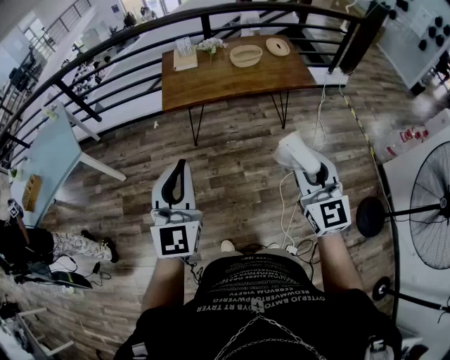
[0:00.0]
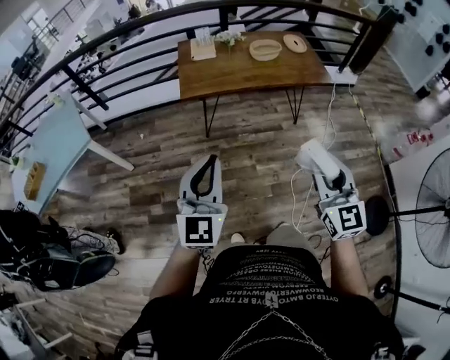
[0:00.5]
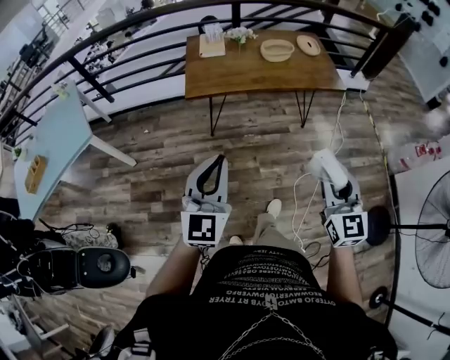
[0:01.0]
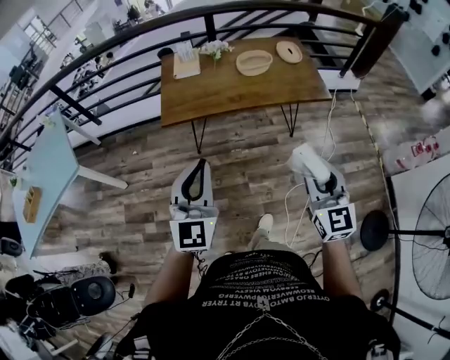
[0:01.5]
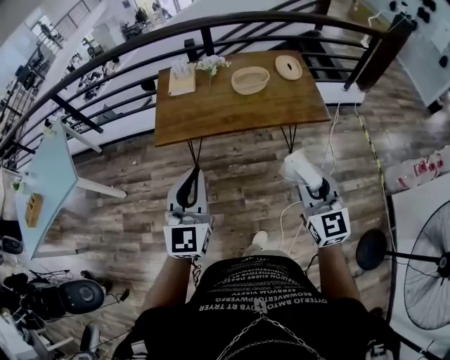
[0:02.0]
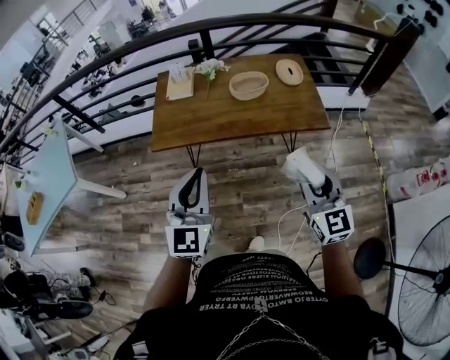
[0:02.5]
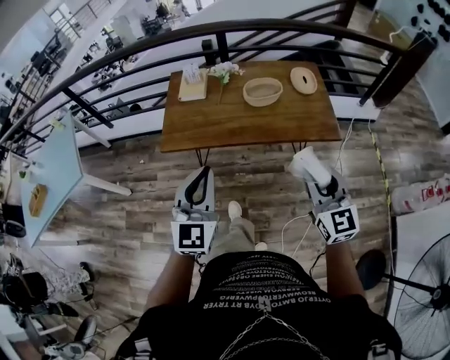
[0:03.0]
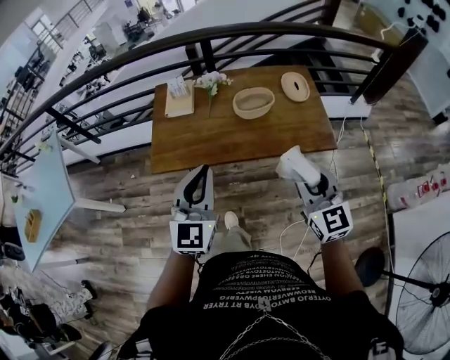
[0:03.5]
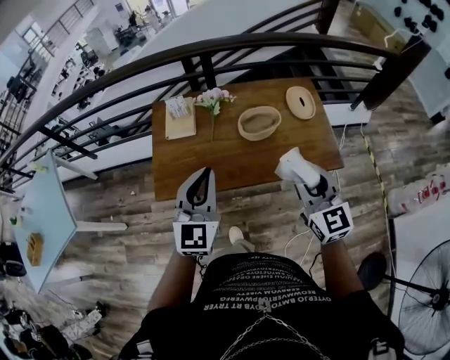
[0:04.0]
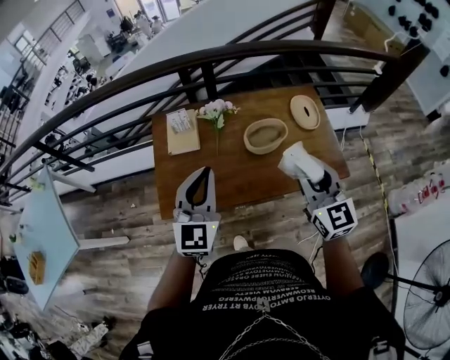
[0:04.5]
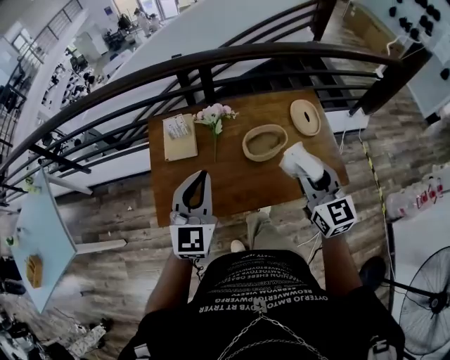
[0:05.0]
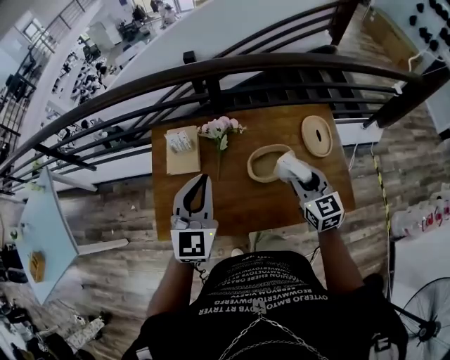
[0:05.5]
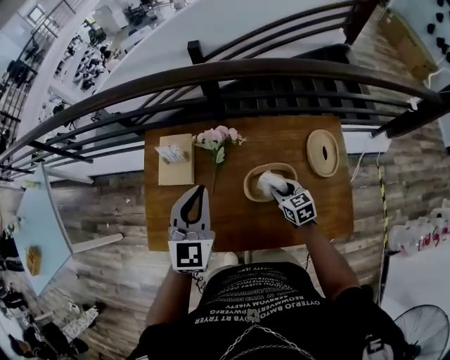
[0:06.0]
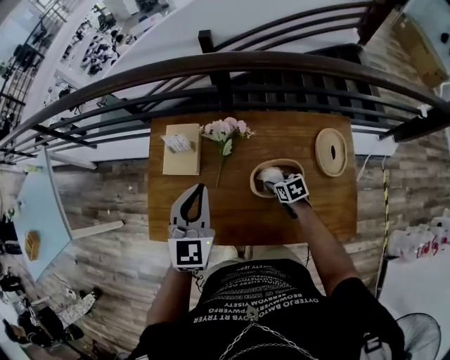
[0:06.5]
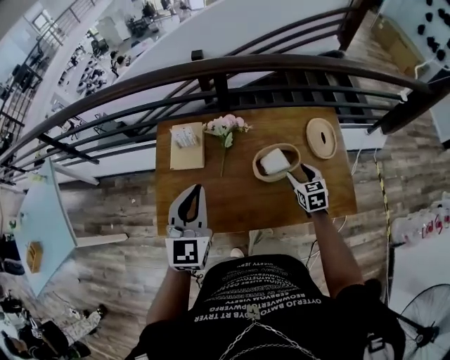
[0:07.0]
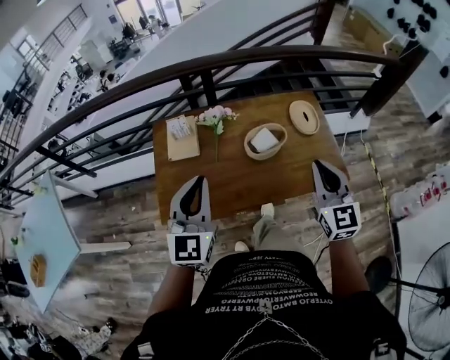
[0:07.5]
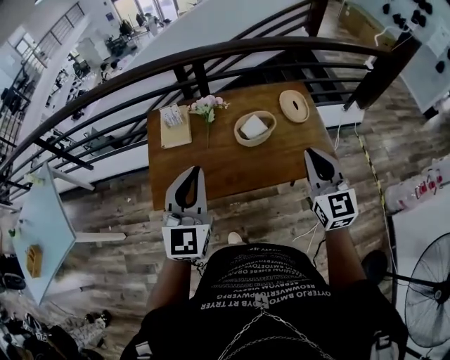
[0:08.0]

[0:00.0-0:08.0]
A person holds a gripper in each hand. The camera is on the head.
0:00.0 to 0:02.0: The grippers both shift forward and to the right by approximately 25 cm.
0:02.0 to 0:04.0: Both grippers travel together forward, roughly 30 cm.
0:04.0 to 0:06.0: The right gripper moves forward and downward, roughly 40 cm, and angles its fingers downward, by some 30 degrees. The left gripper heads forward, covering some 25 cm.
0:06.0 to 0:08.0: The left gripper changes place by some 30 cm, while the right gripper heads upward, covering roughly 35 cm, points its fingers some 30 degrees further upward, and opens, then closes again.

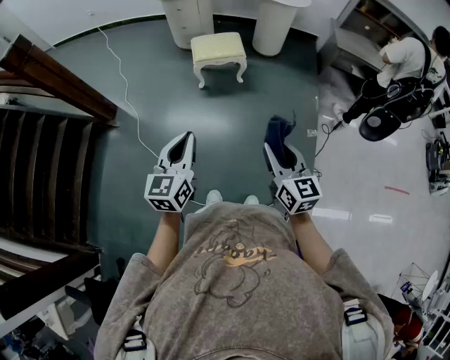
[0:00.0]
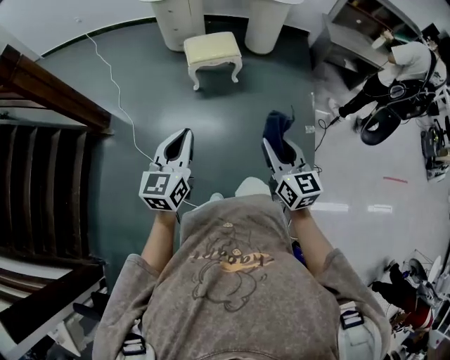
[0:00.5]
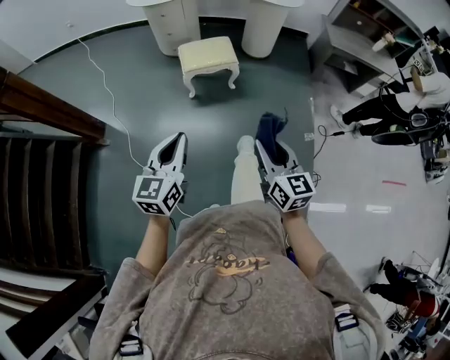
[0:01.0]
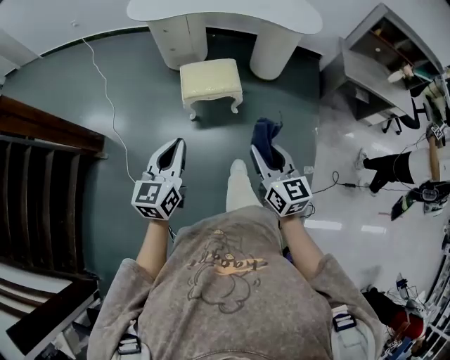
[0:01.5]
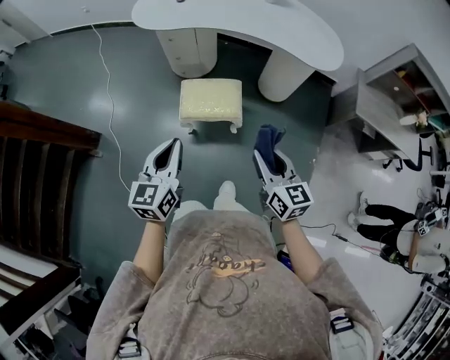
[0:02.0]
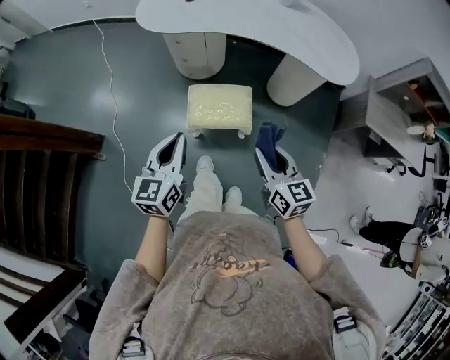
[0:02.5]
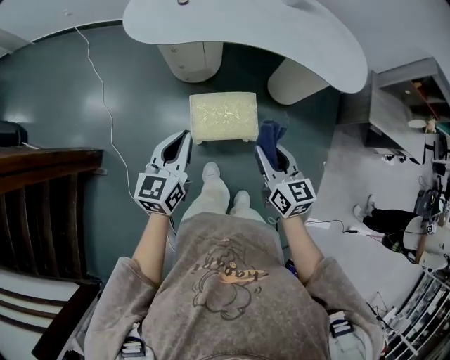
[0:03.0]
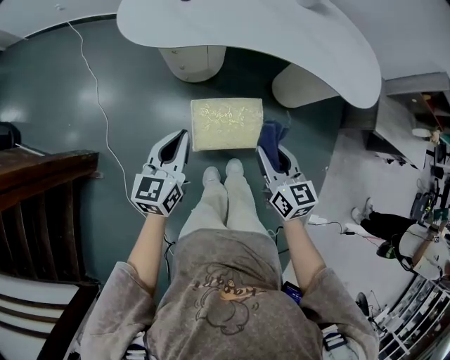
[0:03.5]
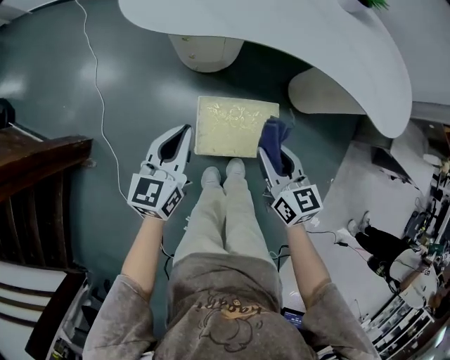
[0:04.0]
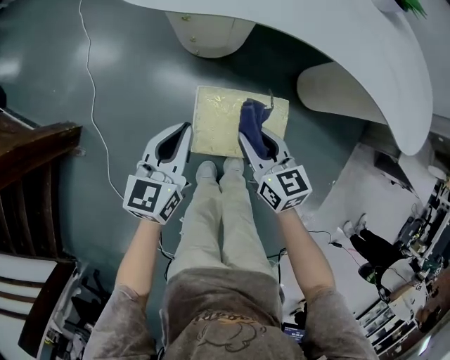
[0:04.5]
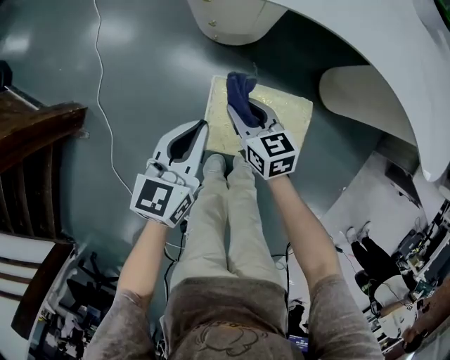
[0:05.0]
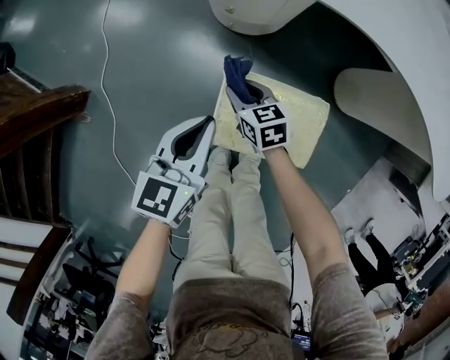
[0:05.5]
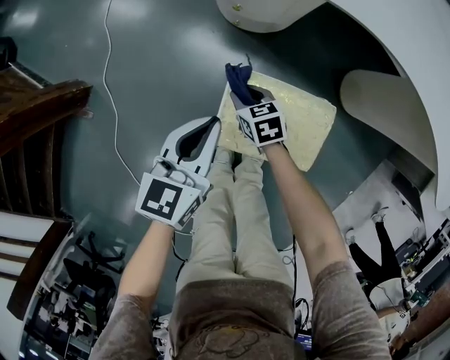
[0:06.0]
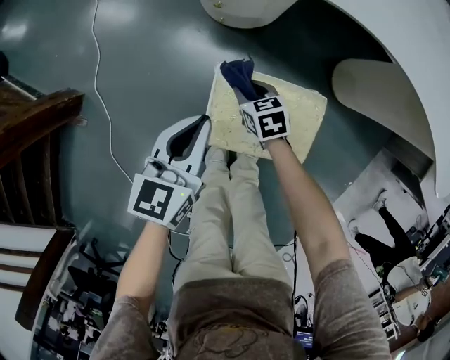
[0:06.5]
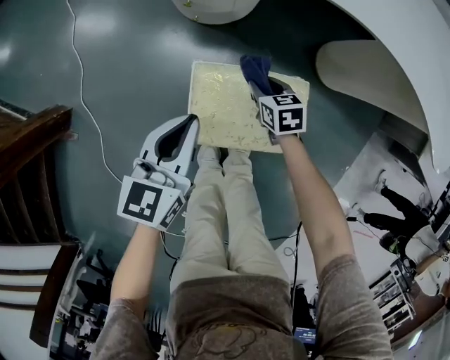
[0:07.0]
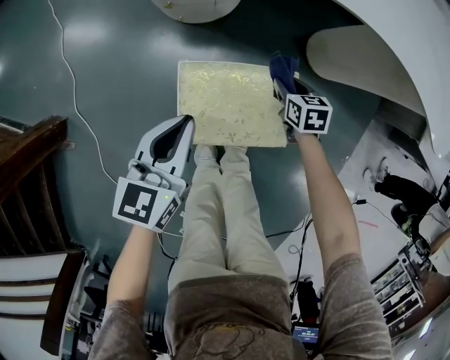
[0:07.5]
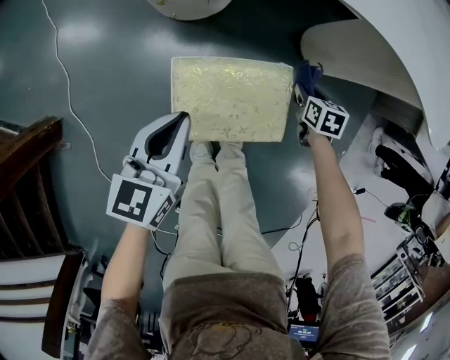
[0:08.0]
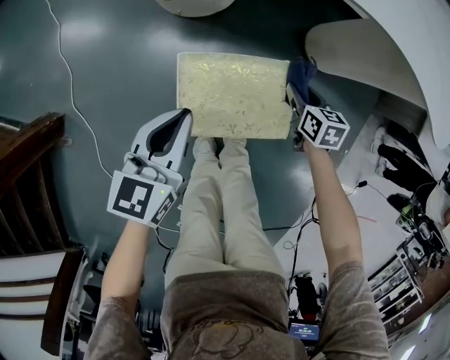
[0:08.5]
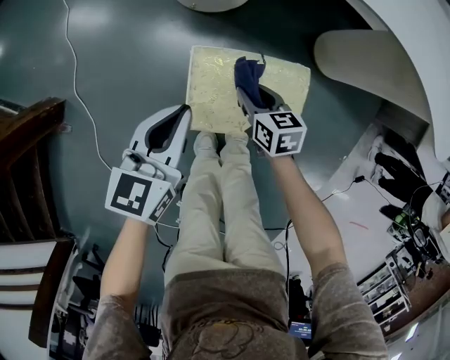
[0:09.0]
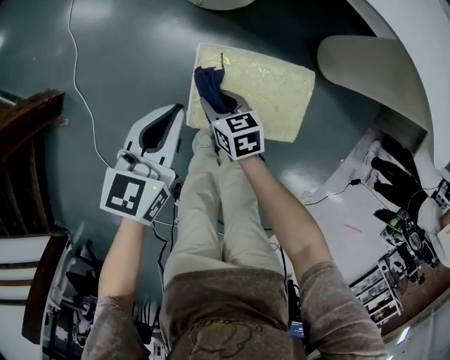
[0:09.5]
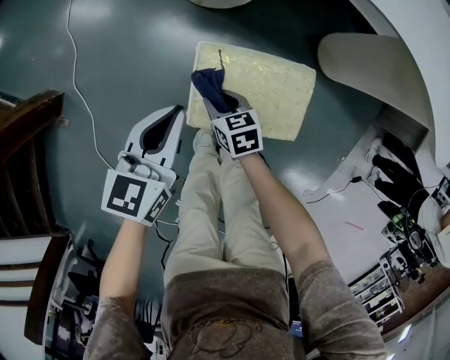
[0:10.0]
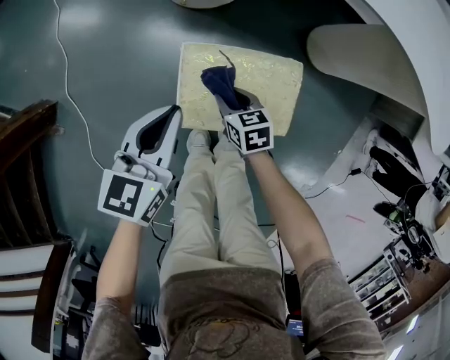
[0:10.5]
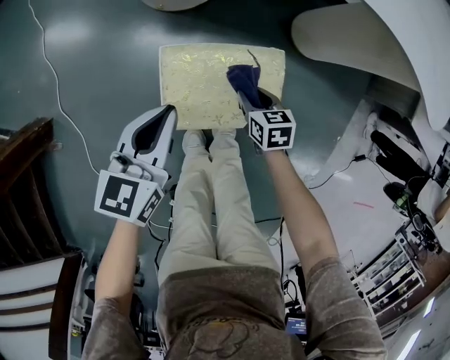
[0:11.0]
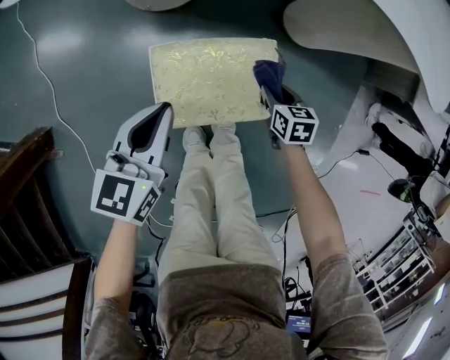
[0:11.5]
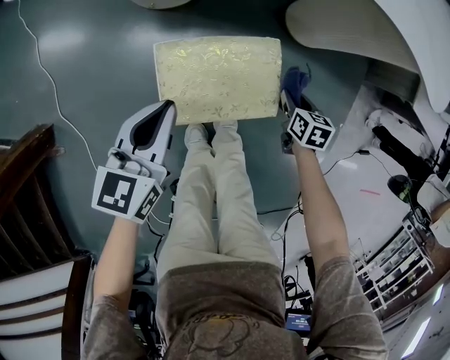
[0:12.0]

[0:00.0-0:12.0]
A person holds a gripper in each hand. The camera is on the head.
0:00.0 to 0:02.0: The pair of grippers is taken forward, about 50 cm.
0:02.0 to 0:04.0: Both grippers travel together forward and downward, about 40 cm.
0:04.0 to 0:06.0: The left gripper shifts about 15 cm downward; the right gripper heads downward and to the left, covering approximately 35 cm, and turns by about 40 degrees.
0:06.0 to 0:08.0: The right gripper changes place by some 35 cm, and changes its angle by approximately 40 degrees. The left gripper ends up some 5 cm from where it was.
0:08.0 to 0:10.0: The left gripper travels to the left by roughly 5 cm; the right gripper shifts roughly 35 cm to the left, and swivels roughly 30 degrees.
0:10.0 to 0:12.0: The left gripper ends up about 5 cm from where it was. The right gripper shifts by about 30 cm, and swivels about 40 degrees.

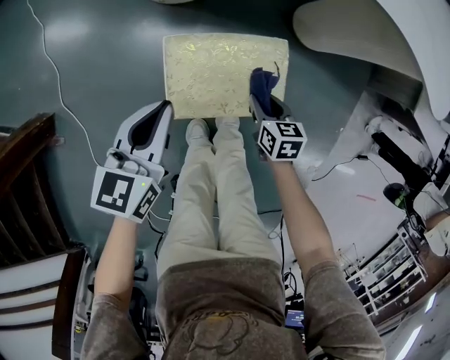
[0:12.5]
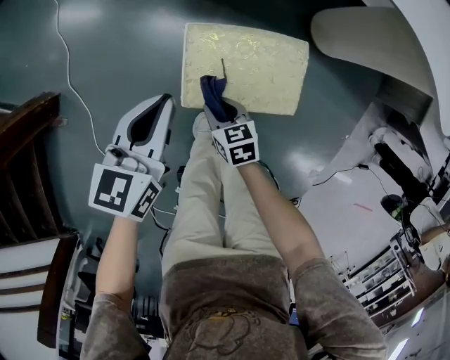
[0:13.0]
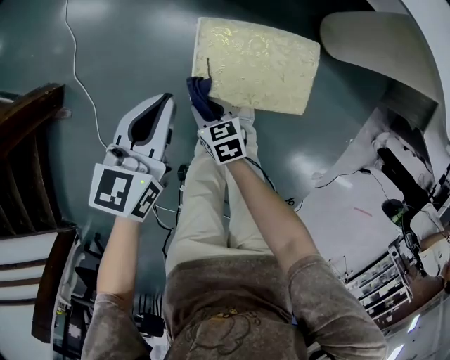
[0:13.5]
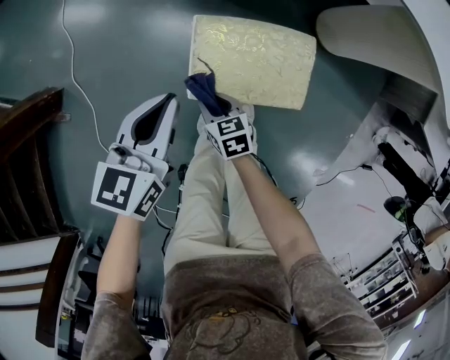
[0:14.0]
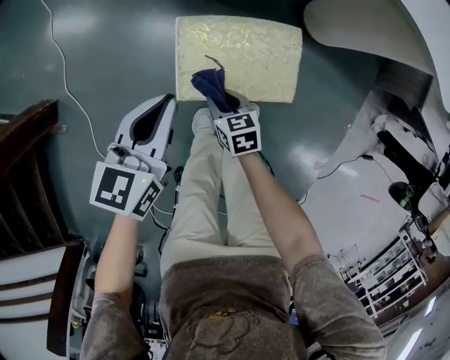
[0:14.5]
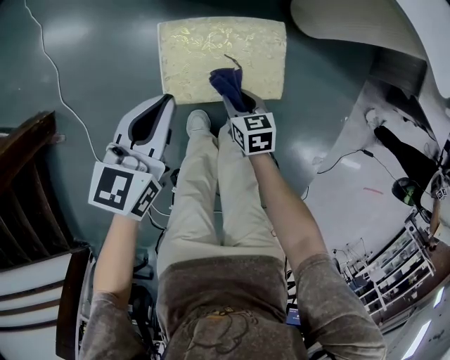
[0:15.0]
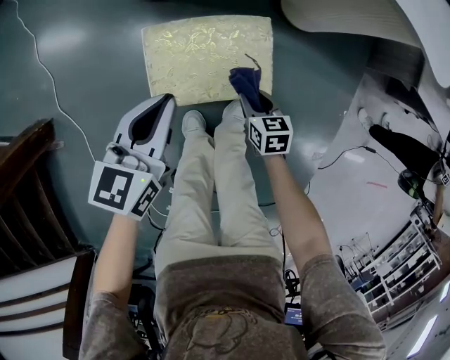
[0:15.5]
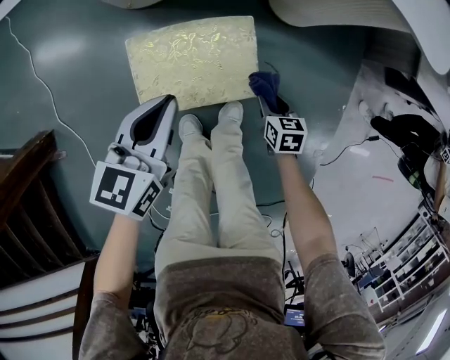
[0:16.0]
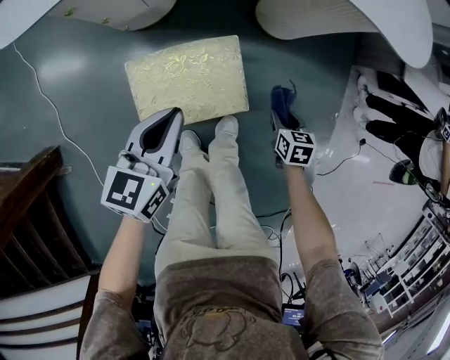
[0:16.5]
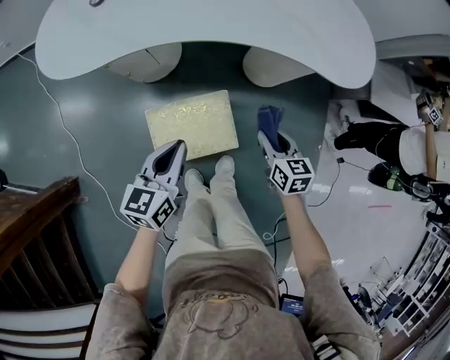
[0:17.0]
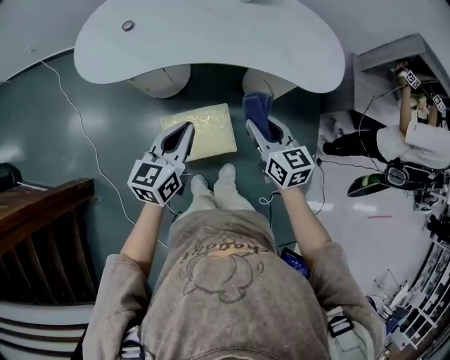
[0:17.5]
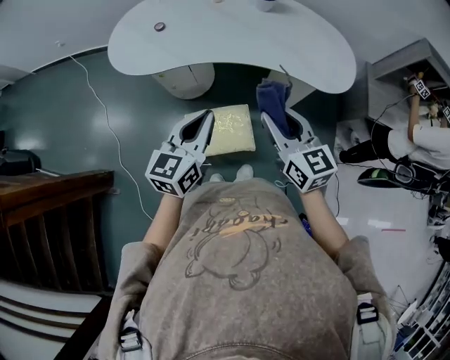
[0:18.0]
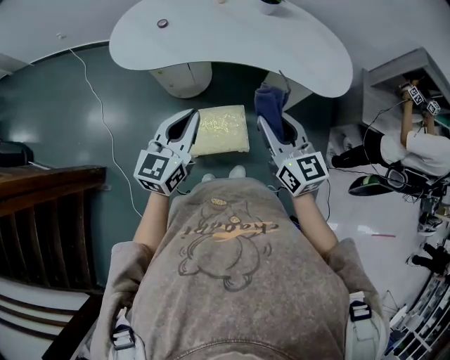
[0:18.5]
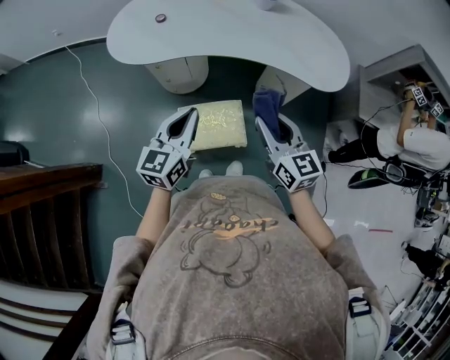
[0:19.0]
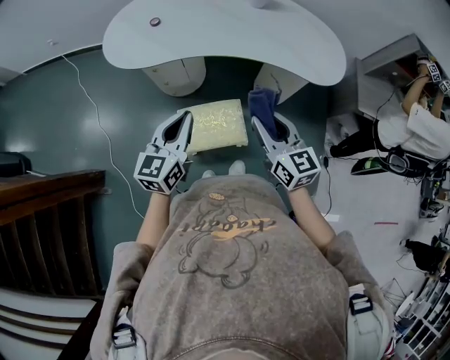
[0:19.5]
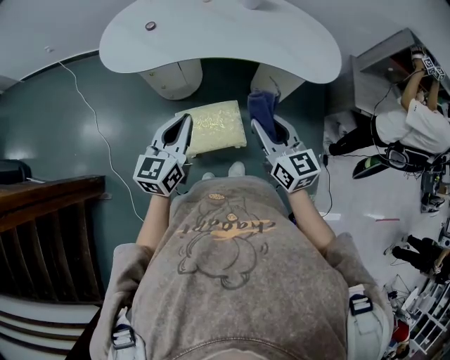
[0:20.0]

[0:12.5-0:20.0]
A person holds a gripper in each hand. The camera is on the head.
0:12.5 to 0:14.5: The right gripper travels to the left by roughly 15 cm.
0:14.5 to 0:16.5: The right gripper moves about 35 cm, and turns by approximately 30 degrees; the left gripper moves roughly 15 cm.
0:16.5 to 0:18.0: The right gripper moves upward, approximately 60 cm, and angles its fingers upward, by approximately 40 degrees; the left gripper moves upward, about 35 cm.
0:18.0 to 0:20.0: The left gripper shifts by approximately 5 cm. Meanwhile the right gripper ends up approximately 5 cm from where it was.
